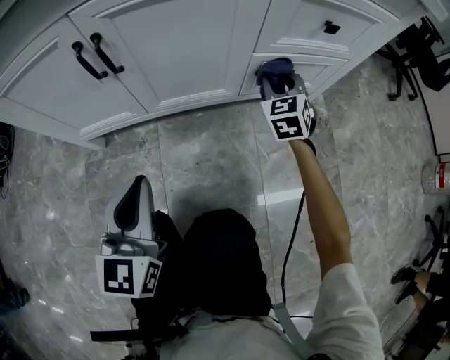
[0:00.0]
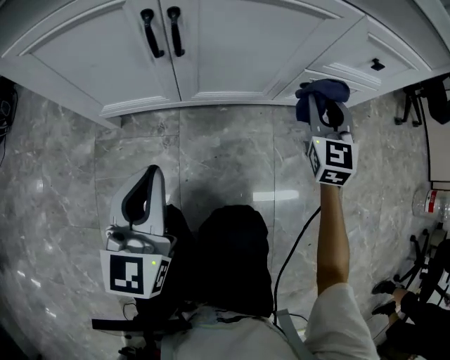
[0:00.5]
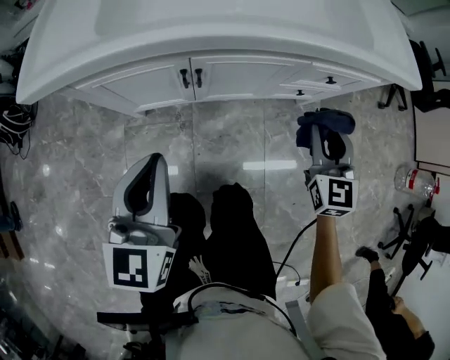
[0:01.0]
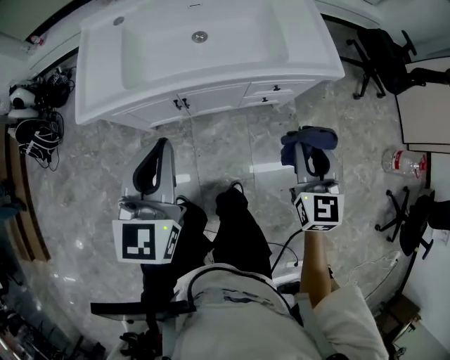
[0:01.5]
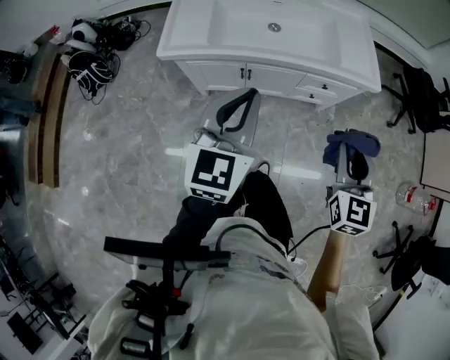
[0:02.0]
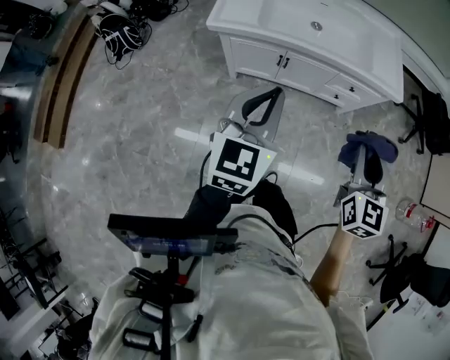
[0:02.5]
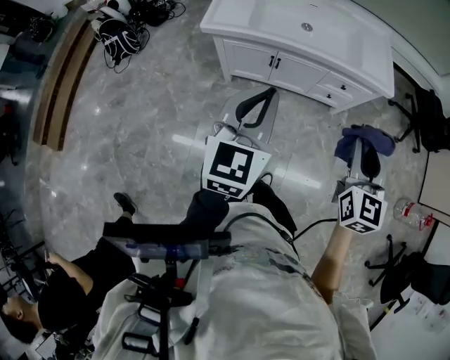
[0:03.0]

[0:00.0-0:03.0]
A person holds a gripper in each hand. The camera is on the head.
0:00.0 to 0:01.5: Both grippers move upward, about 60 cm. The right gripper changes its angle by about 20 degrees.
0:01.5 to 0:03.0: The left gripper is displaced backward and upward by about 25 cm, while the right gripper is displaced upward and backward by some 25 cm.

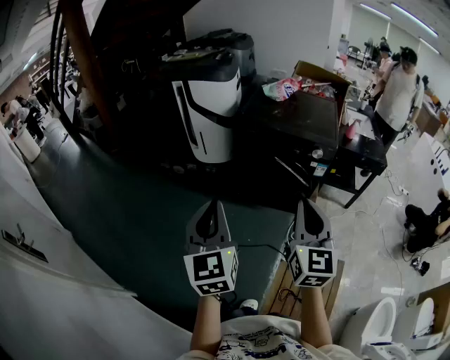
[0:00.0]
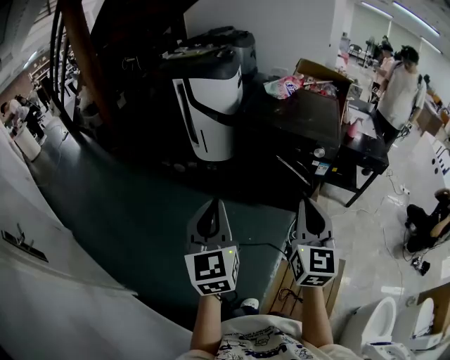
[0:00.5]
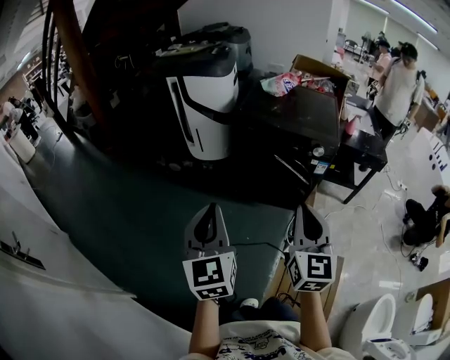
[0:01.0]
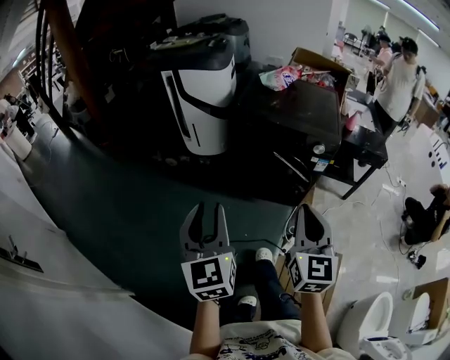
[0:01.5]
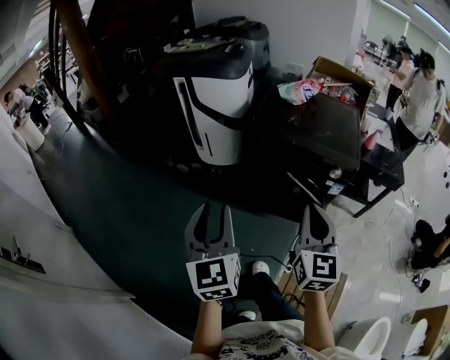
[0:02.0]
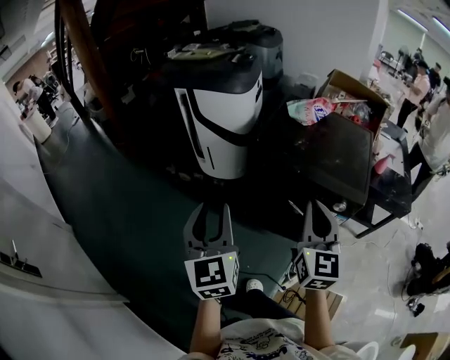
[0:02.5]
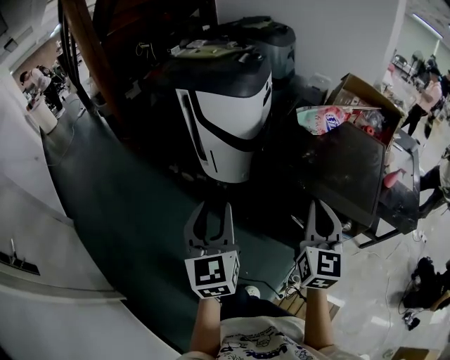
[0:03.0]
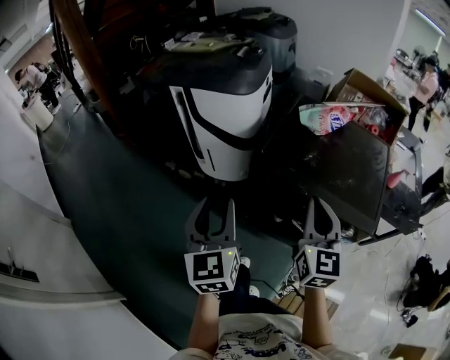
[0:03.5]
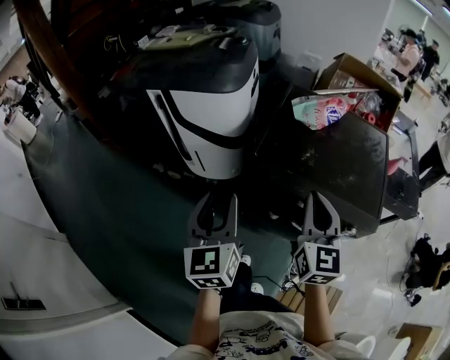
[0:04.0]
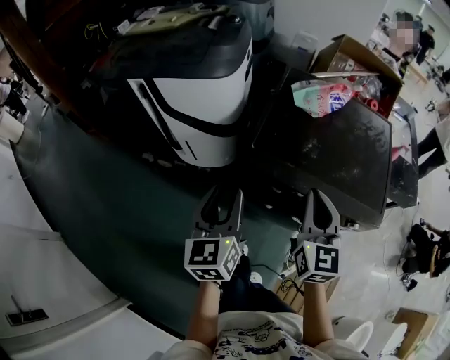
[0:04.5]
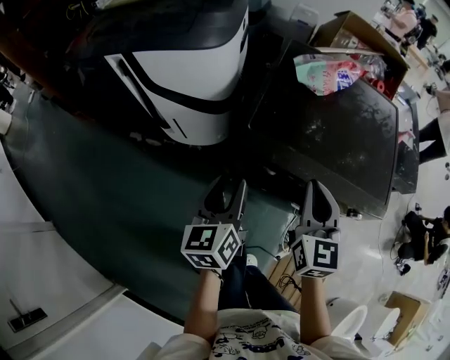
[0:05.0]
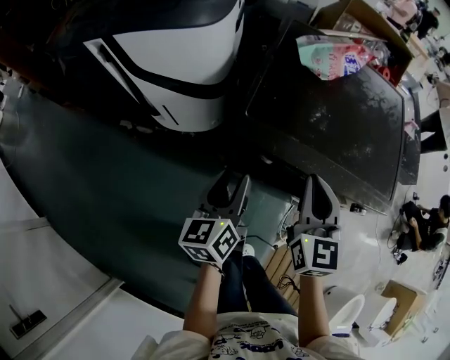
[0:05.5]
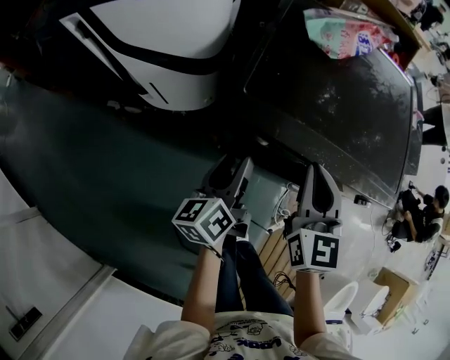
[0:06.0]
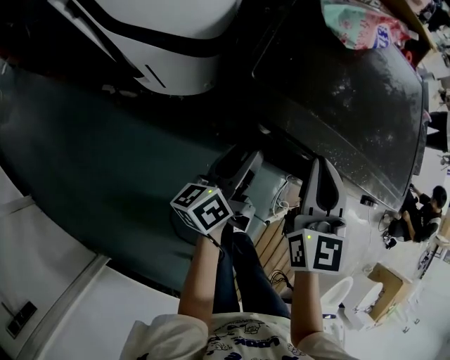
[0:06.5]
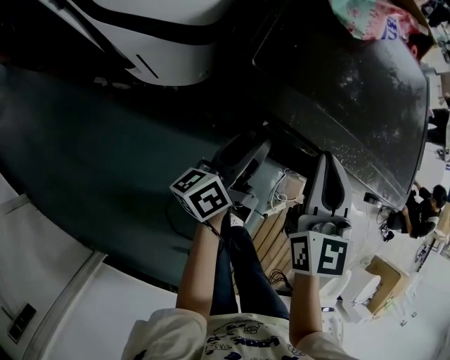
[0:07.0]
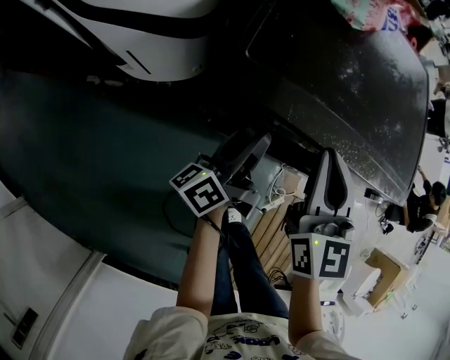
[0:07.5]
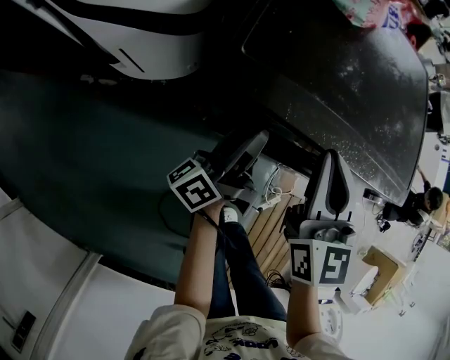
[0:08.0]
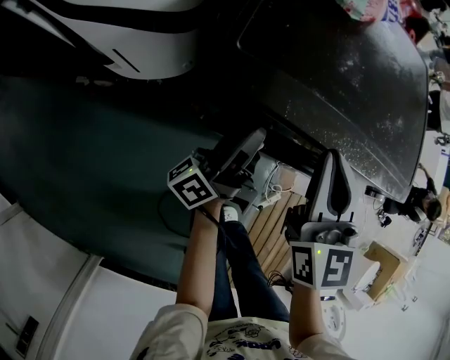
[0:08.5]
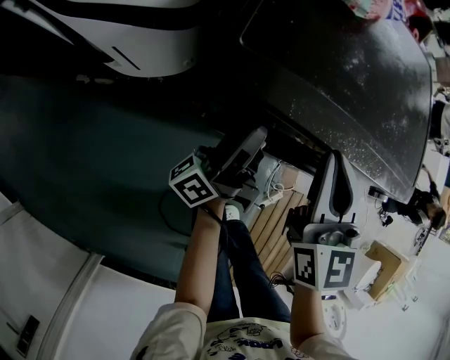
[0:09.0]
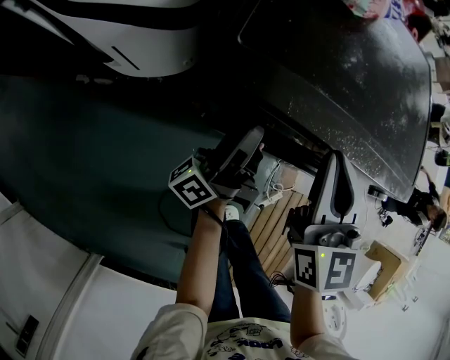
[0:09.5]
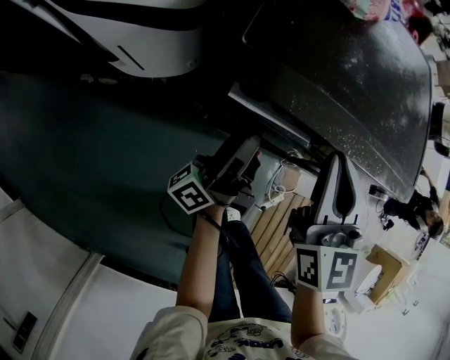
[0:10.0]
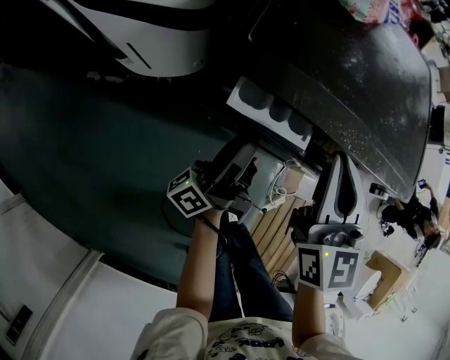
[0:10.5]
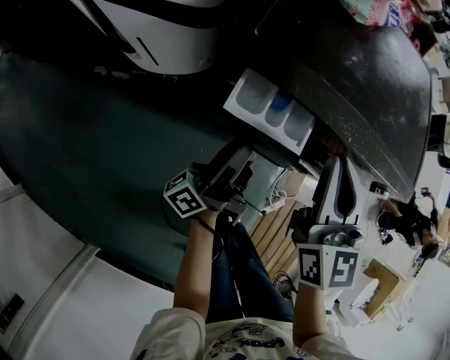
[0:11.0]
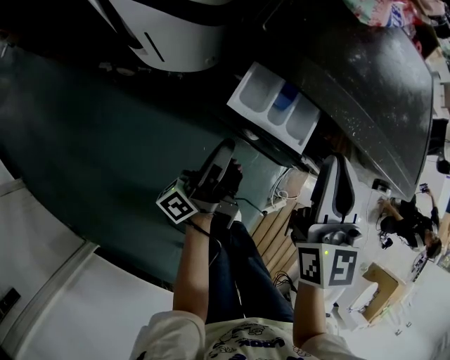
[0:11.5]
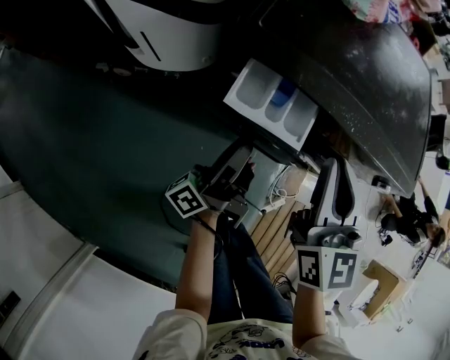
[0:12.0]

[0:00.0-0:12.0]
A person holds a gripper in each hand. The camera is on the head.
0:00.0 to 0:02.0: Both grippers travel together forward, about 20 cm. The left gripper opens.
0:02.0 to 0:04.0: The pair of grippers is taken forward, about 40 cm.
0:04.0 to 0:06.0: The two grippers go some 25 cm downward and forward. The left gripper swivels approximately 50 degrees.
0:06.0 to 0:08.0: The left gripper travels downward and forward by roughly 5 cm, and changes its angle by about 40 degrees.
0:08.0 to 0:10.0: The grippers make only small movements.
0:10.0 to 0:12.0: Both grippers travel together backward, about 5 cm. The left gripper closes, then reopens.

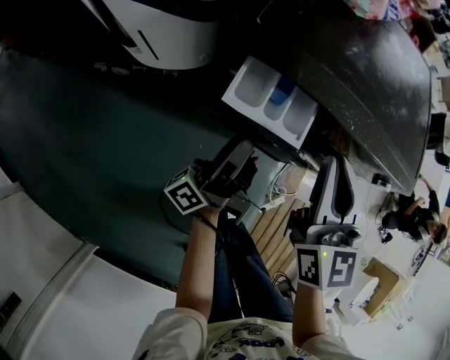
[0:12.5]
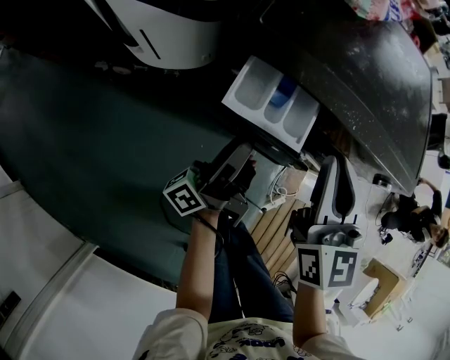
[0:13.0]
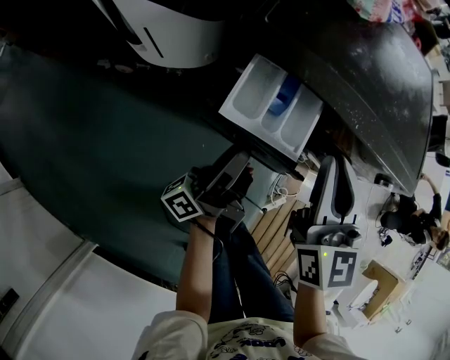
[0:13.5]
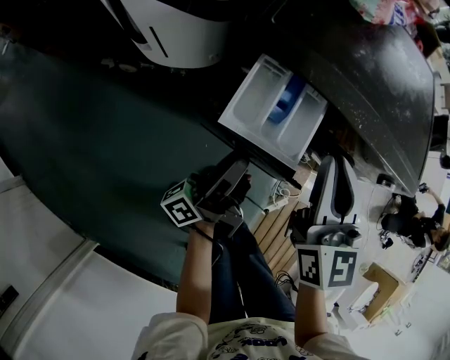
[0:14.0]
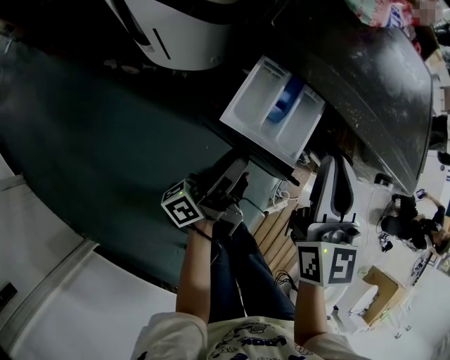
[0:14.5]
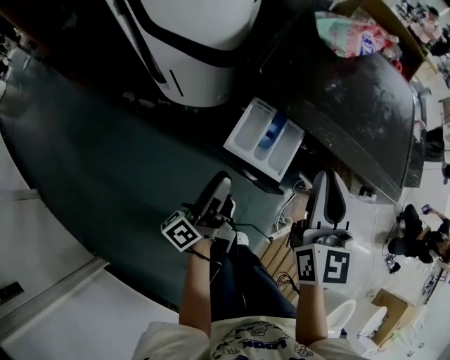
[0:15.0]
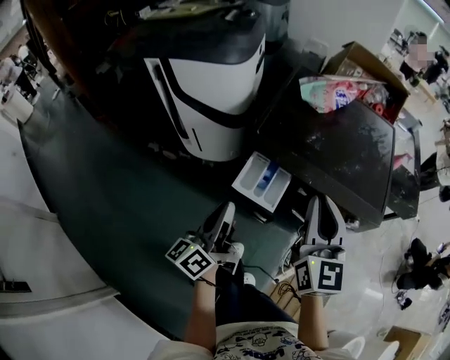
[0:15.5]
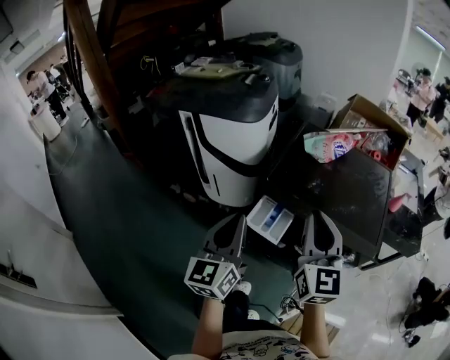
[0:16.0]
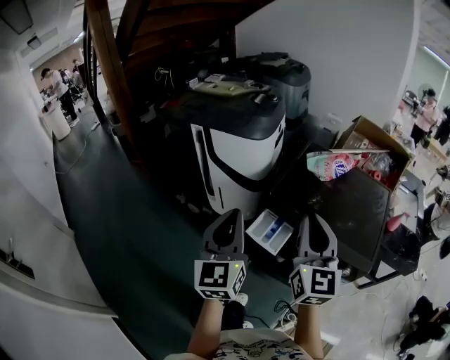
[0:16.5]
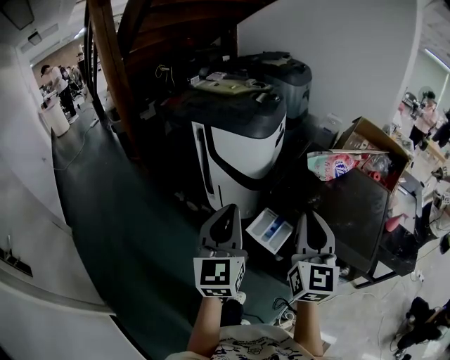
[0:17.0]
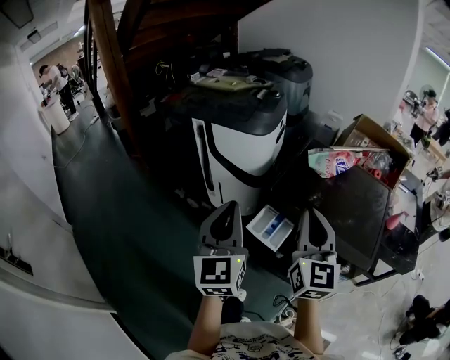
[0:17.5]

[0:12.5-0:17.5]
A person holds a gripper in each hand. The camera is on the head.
0:12.5 to 0:15.0: The right gripper heads upward, covering some 5 cm. The left gripper is displaced backward and to the left by about 10 cm, and changes its angle by roughly 20 degrees.
0:15.0 to 0:17.5: The right gripper shifts some 25 cm upward, while the left gripper moves upward, some 40 cm, twists roughly 80 degrees clockwise, seen from behind, and closes.

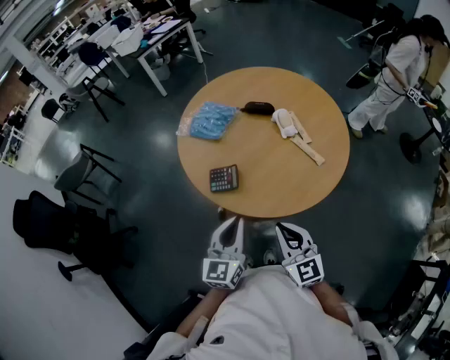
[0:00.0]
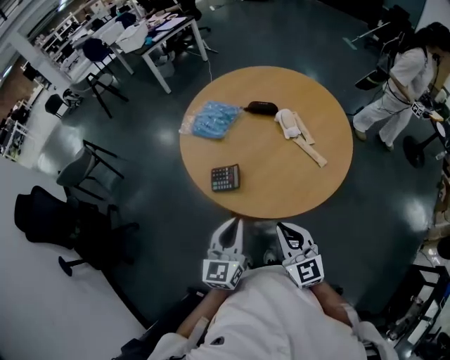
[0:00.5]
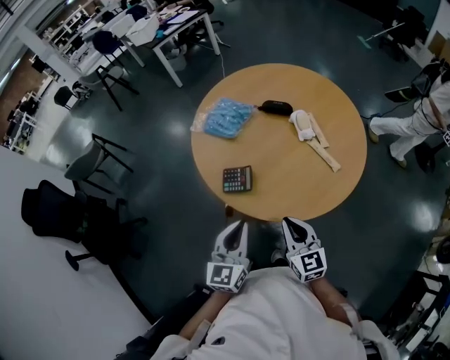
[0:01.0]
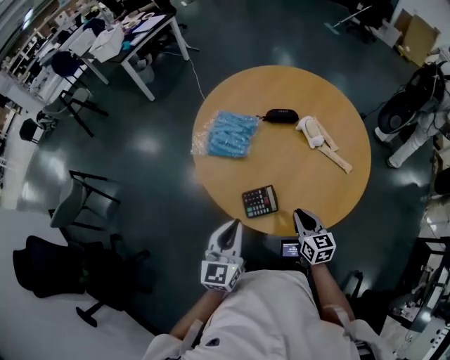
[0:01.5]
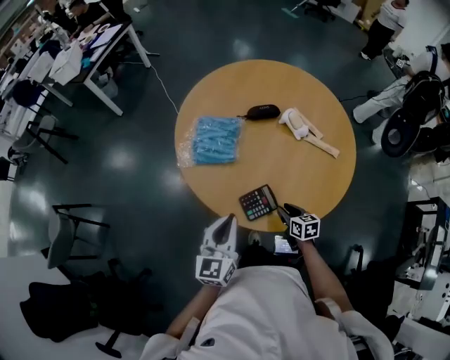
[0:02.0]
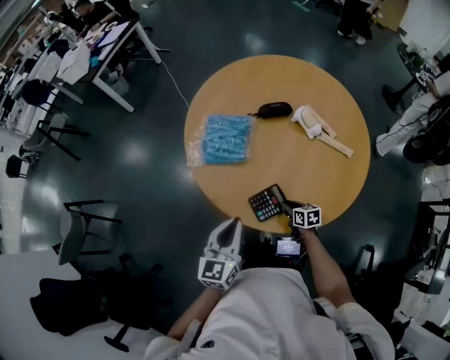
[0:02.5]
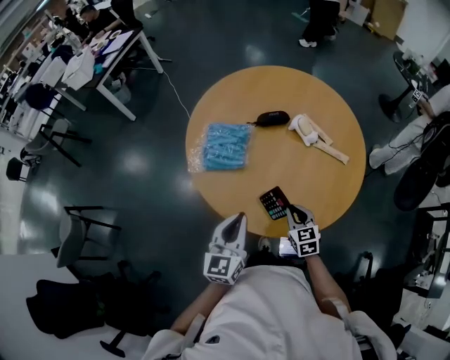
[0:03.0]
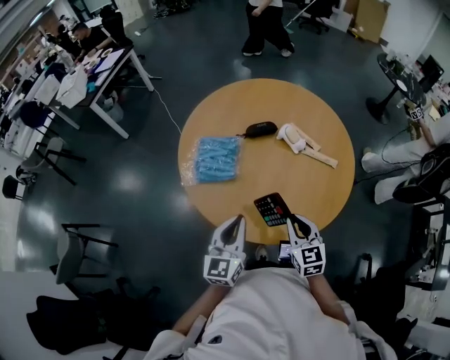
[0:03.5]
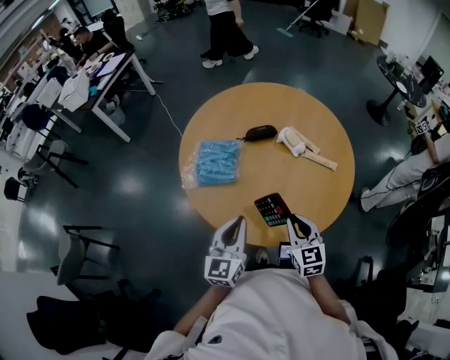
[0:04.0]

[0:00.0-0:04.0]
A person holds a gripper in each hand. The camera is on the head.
0:00.0 to 0:02.0: The left gripper is displaced to the left and forward by approximately 30 cm, and changes its angle by some 20 degrees, while the right gripper moves downward, forward and to the left, approximately 35 cm, points its fingers roughly 30 degrees further downward, and opens.
0:02.0 to 0:04.0: The left gripper shifts by roughly 5 cm; the right gripper goes about 20 cm upward, and rotates some 30 degrees.

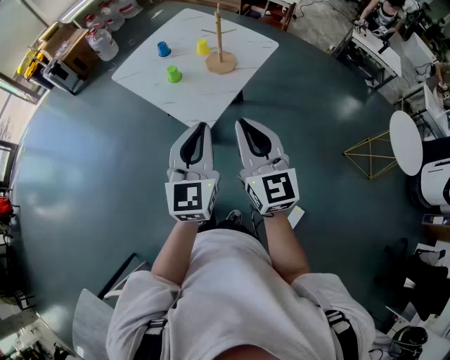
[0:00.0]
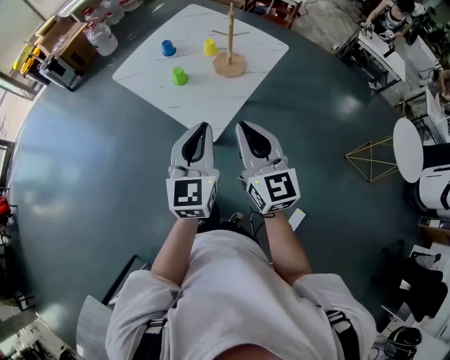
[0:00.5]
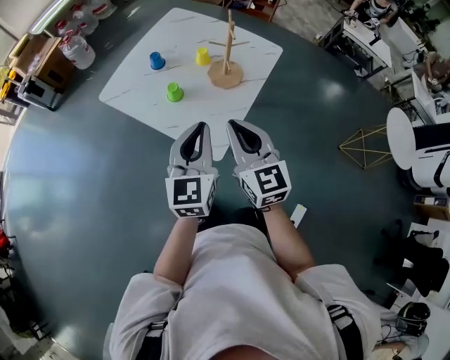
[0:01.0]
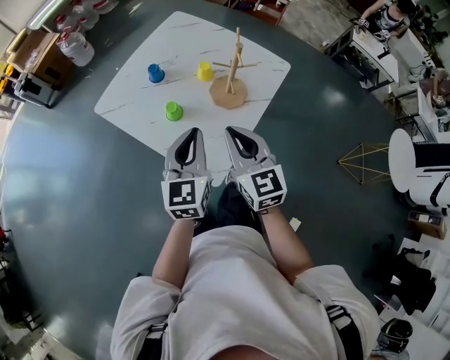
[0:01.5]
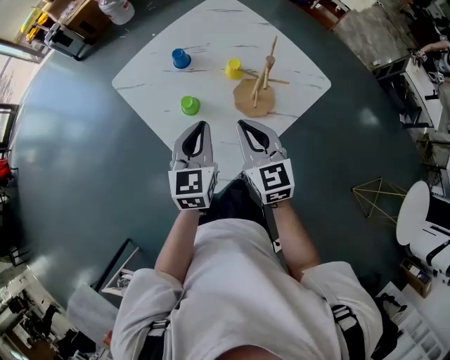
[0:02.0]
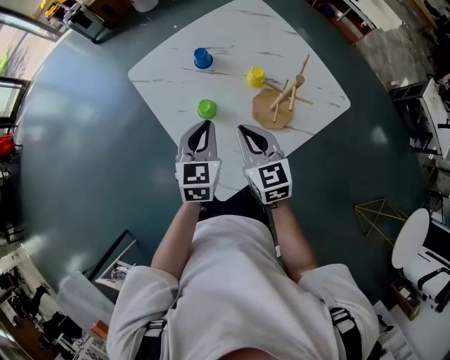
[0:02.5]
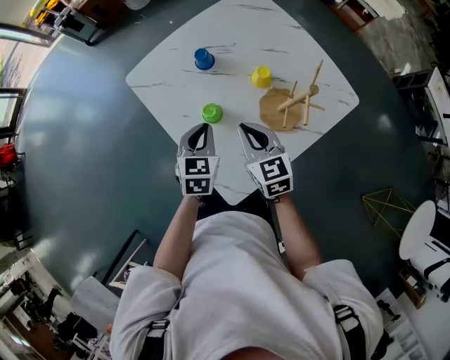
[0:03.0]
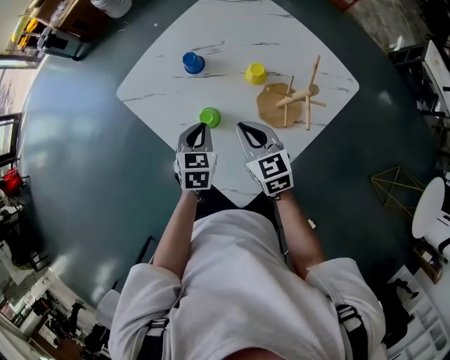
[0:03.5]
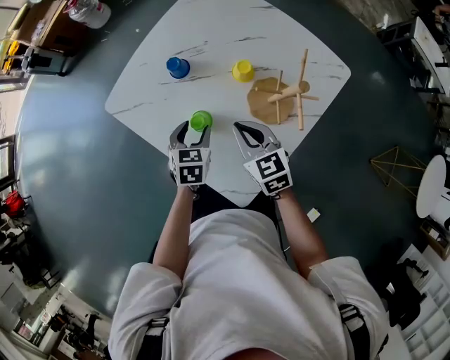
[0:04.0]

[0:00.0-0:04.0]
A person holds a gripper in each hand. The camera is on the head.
0:00.0 to 0:02.0: Both grippers move forward, roughly 40 cm. The right gripper changes its angle by some 20 degrees. Meanwhile the left gripper rotates approximately 20 degrees.
0:02.0 to 0:04.0: Both grippers travel together downward and forward, approximately 20 cm. The left gripper points its fingers about 30 degrees further downward, and opens up.
